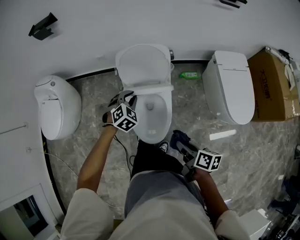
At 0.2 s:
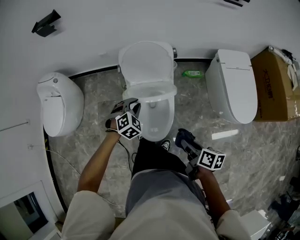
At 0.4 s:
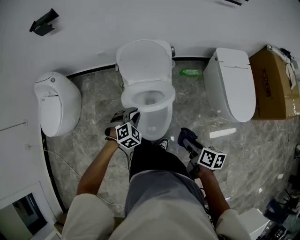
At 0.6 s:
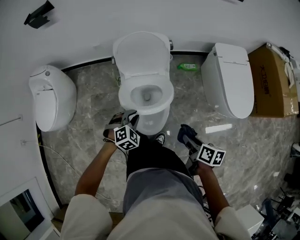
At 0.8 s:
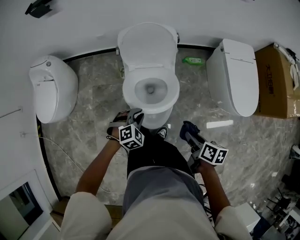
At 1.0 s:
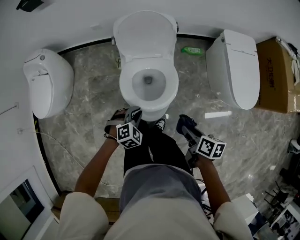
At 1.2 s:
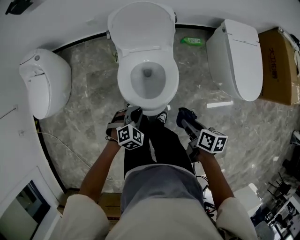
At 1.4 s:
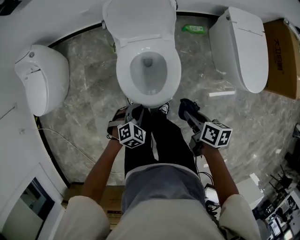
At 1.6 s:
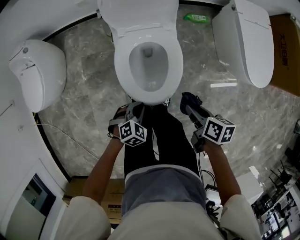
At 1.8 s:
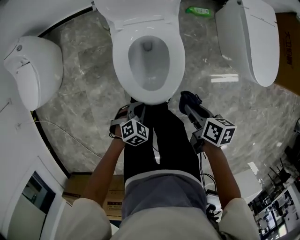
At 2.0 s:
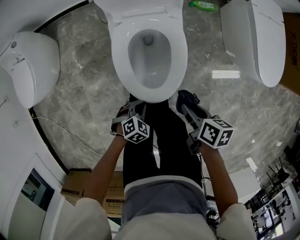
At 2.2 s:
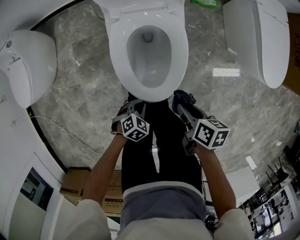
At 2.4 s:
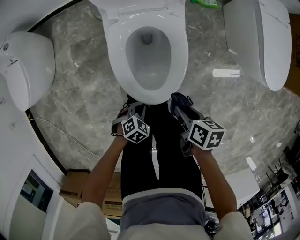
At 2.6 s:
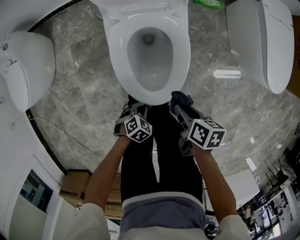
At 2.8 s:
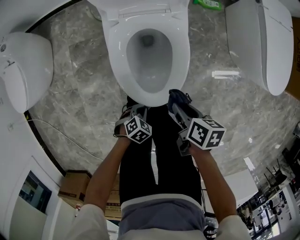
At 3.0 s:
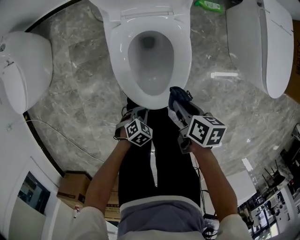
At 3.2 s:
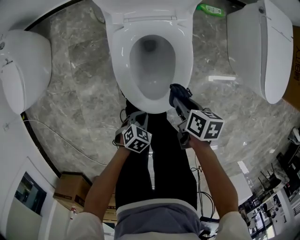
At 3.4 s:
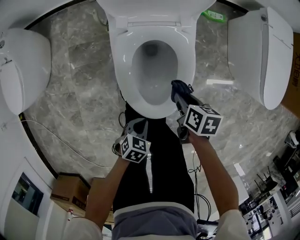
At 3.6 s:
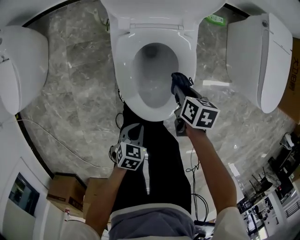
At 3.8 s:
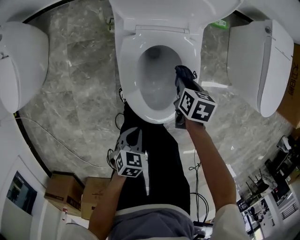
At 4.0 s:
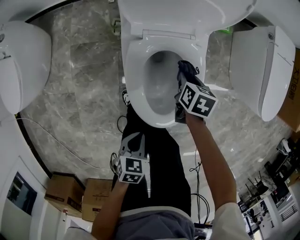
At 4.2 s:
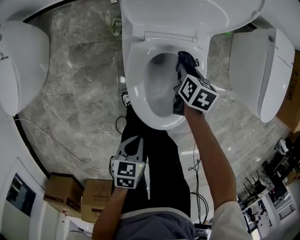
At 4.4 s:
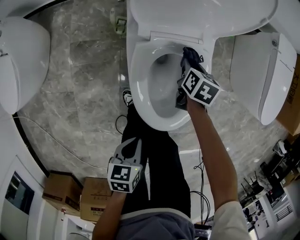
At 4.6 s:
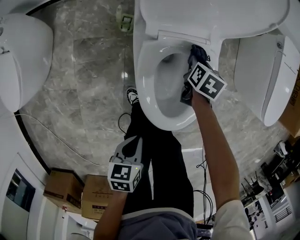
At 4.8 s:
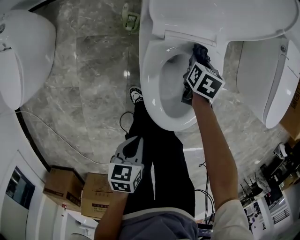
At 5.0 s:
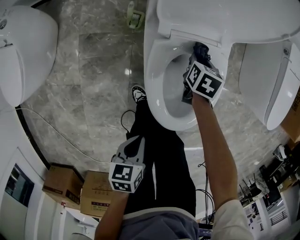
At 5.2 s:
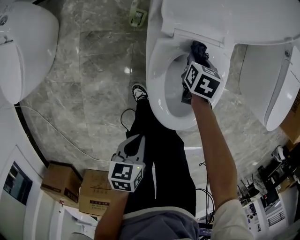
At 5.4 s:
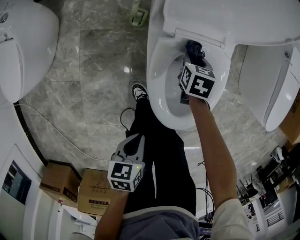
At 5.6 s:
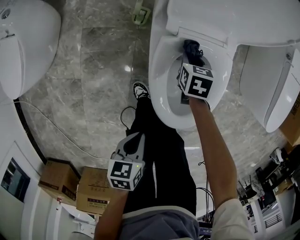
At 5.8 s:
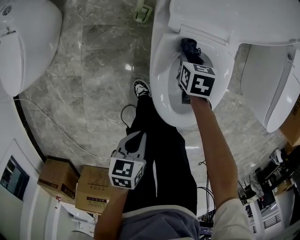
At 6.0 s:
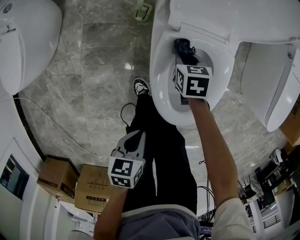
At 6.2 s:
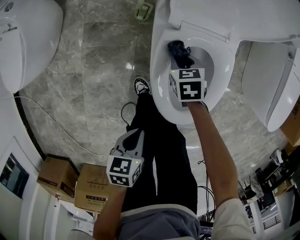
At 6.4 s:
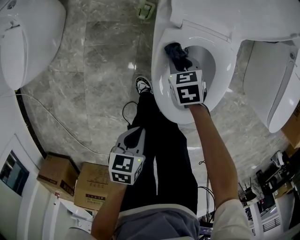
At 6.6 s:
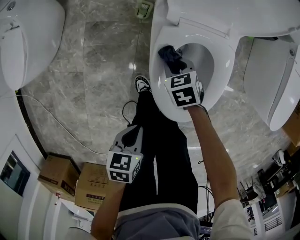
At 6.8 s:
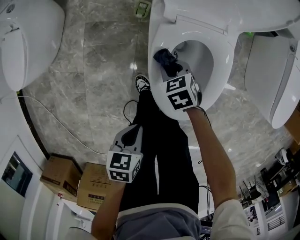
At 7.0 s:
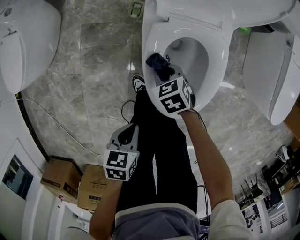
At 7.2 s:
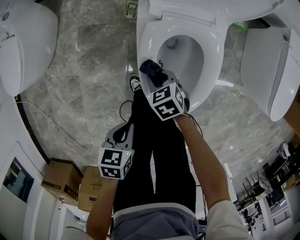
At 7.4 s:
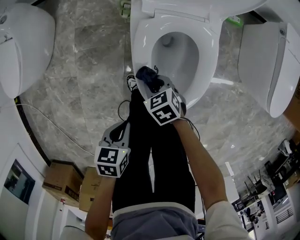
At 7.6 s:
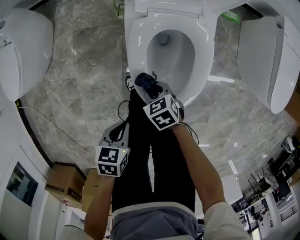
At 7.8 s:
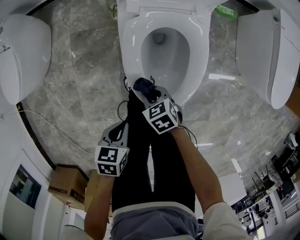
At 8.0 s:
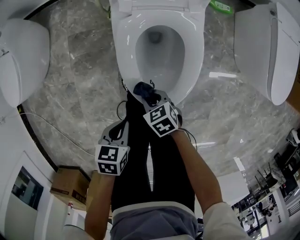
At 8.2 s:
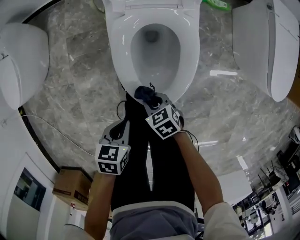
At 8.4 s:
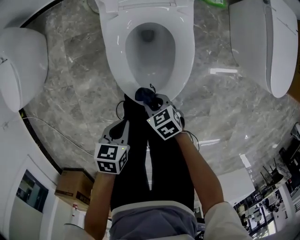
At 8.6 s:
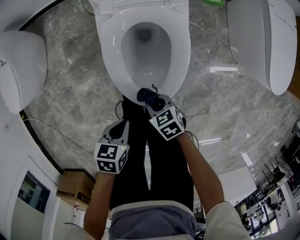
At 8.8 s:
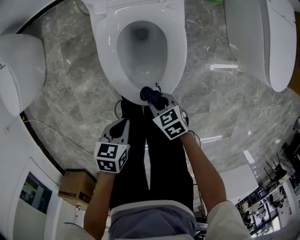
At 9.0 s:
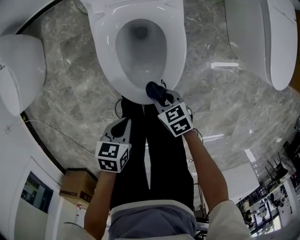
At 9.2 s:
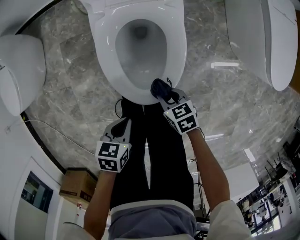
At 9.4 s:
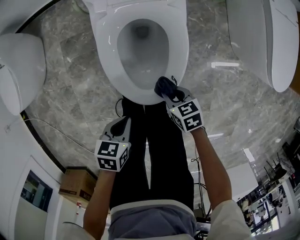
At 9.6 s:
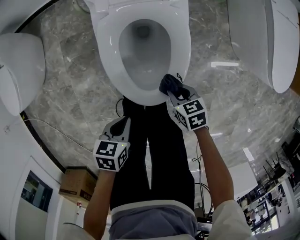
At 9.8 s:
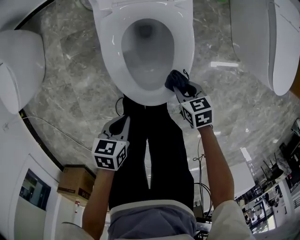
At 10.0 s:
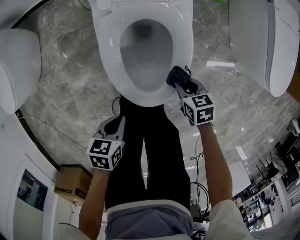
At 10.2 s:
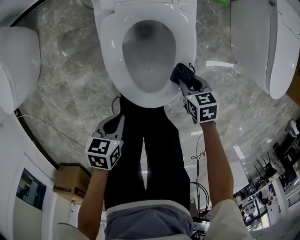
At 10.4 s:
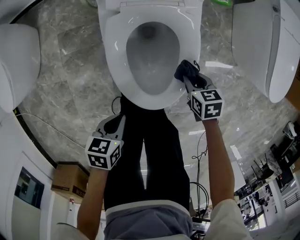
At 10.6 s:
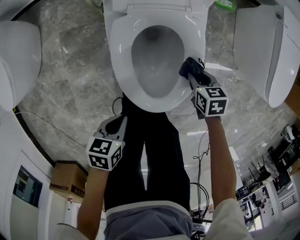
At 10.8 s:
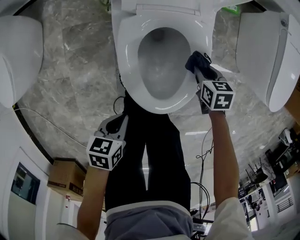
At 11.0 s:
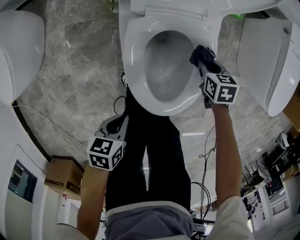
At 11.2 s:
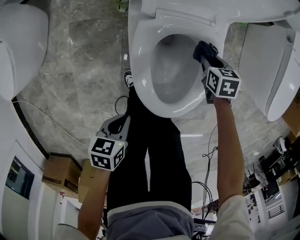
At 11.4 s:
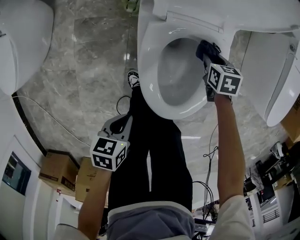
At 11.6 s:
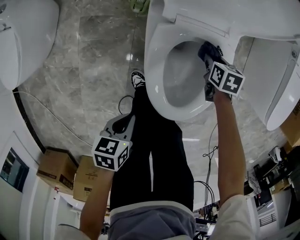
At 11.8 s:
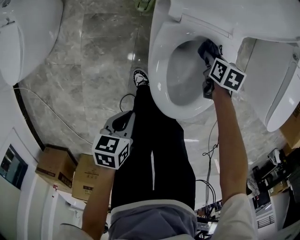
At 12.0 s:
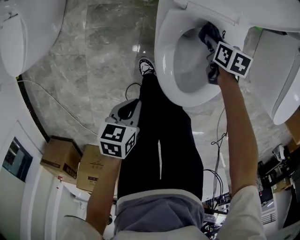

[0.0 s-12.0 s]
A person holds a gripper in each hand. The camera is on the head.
0.0 to 1.6 s: The right gripper moves downward, about 15 cm, while the left gripper moves backward and downward, approximately 30 cm, and changes its angle by roughly 20 degrees.
1.6 to 3.0 s: The grippers both shift downward by roughly 15 cm. The left gripper swivels roughly 20 degrees.
3.0 to 4.4 s: The left gripper is displaced upward by about 15 cm, and twists some 50 degrees counterclockwise, seen from behind; the right gripper ends up approximately 30 cm from where it was, and rotates approximately 30 degrees.
4.4 to 6.0 s: The right gripper shifts about 15 cm to the left and backward, and swivels approximately 30 degrees.
6.0 to 7.6 s: The right gripper travels backward by approximately 20 cm, and swivels approximately 20 degrees.
7.6 to 9.0 s: The left gripper shifts by about 10 cm; the right gripper moves approximately 15 cm.
9.0 to 10.4 s: The right gripper shifts approximately 15 cm forward and to the right. The left gripper shifts some 5 cm to the left.
10.4 to 12.0 s: The left gripper is displaced to the left by approximately 10 cm. Meanwhile the right gripper travels to the left and forward by about 20 cm.

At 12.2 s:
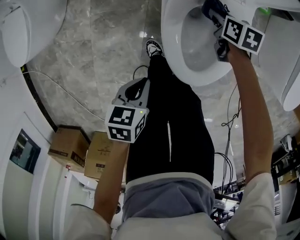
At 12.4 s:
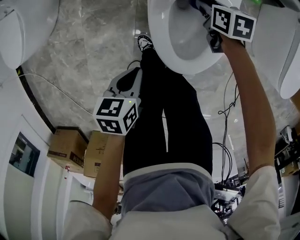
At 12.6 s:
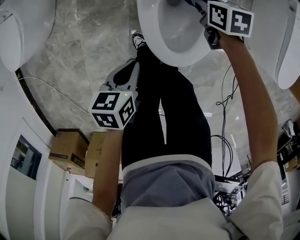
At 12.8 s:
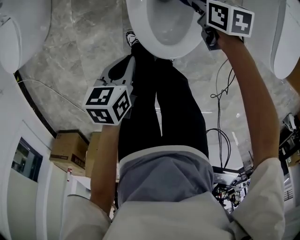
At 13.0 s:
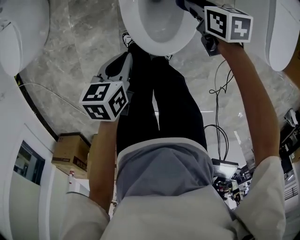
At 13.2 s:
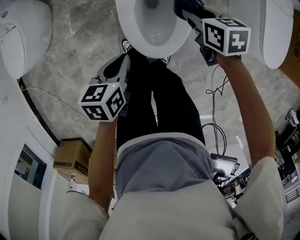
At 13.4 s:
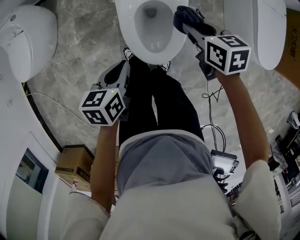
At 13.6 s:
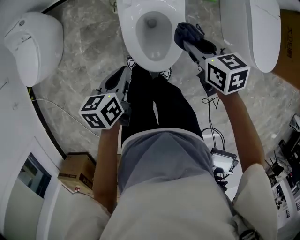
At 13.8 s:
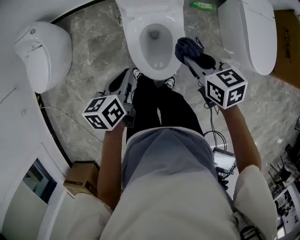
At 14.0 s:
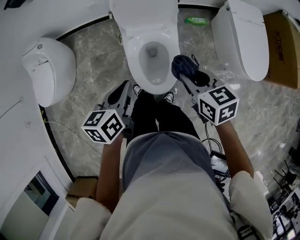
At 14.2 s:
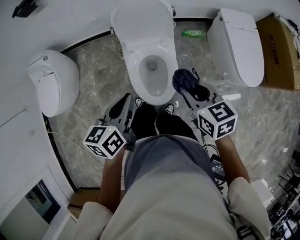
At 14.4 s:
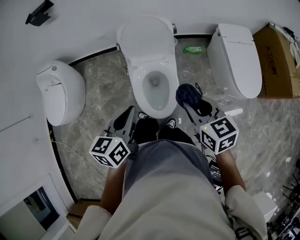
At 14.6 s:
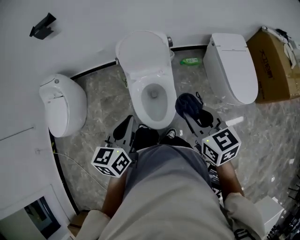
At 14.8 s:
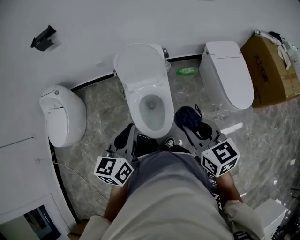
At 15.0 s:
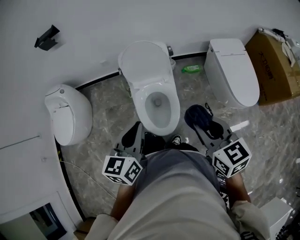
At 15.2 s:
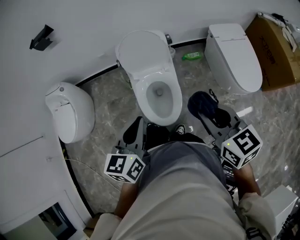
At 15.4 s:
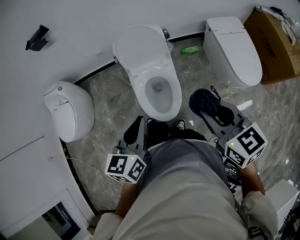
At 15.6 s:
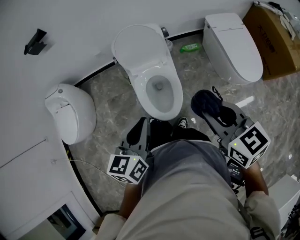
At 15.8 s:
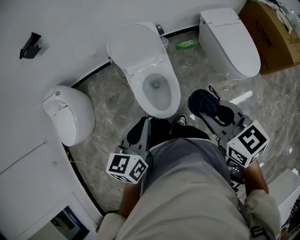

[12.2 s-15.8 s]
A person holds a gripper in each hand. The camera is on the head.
12.2 to 14.0 s: The right gripper is displaced upward and backward by about 50 cm, and turns by some 20 degrees. Meanwhile the left gripper is displaced upward by approximately 30 cm, and rotates approximately 30 degrees.
14.0 to 15.8 s: The left gripper heads upward, to the right and backward, covering roughly 15 cm, and changes its angle by some 20 degrees. The right gripper moves upward, backward and to the right, about 20 cm.

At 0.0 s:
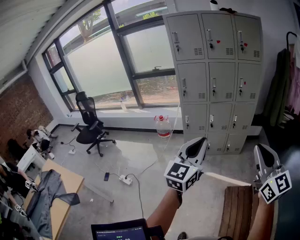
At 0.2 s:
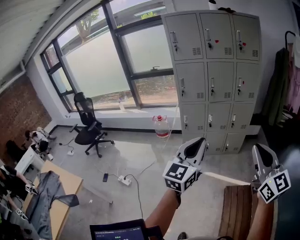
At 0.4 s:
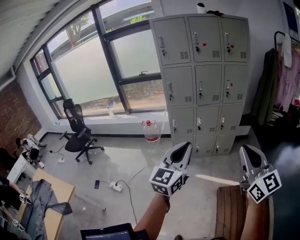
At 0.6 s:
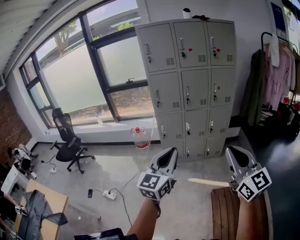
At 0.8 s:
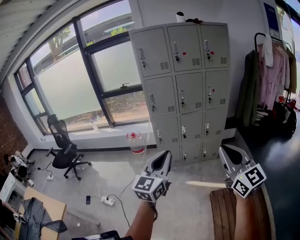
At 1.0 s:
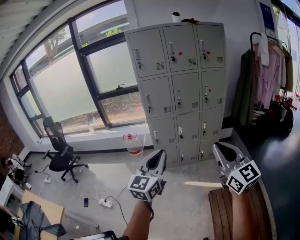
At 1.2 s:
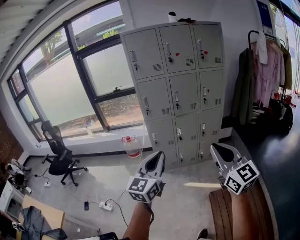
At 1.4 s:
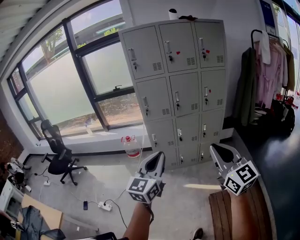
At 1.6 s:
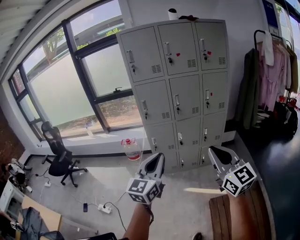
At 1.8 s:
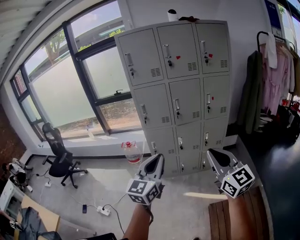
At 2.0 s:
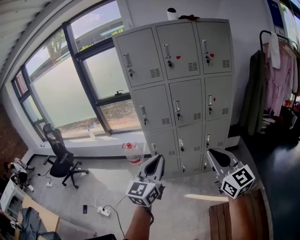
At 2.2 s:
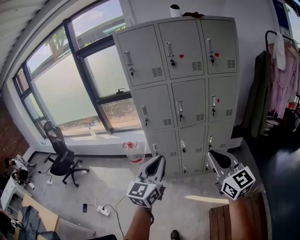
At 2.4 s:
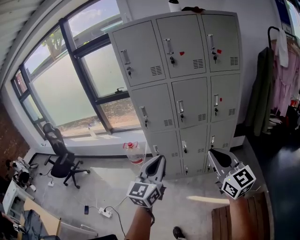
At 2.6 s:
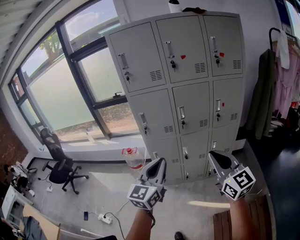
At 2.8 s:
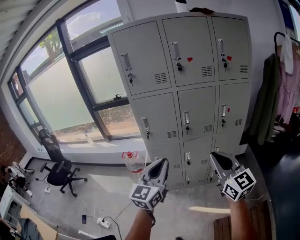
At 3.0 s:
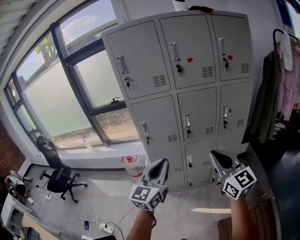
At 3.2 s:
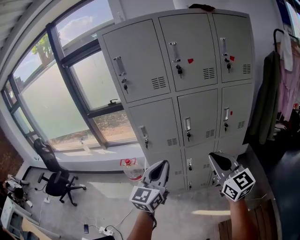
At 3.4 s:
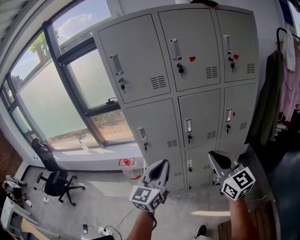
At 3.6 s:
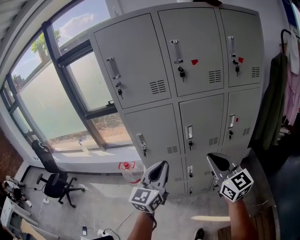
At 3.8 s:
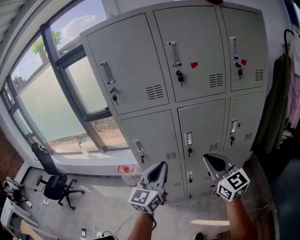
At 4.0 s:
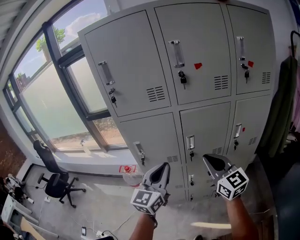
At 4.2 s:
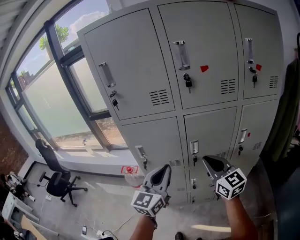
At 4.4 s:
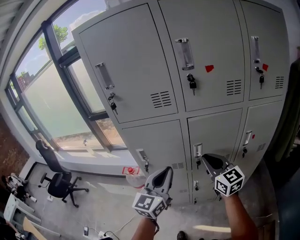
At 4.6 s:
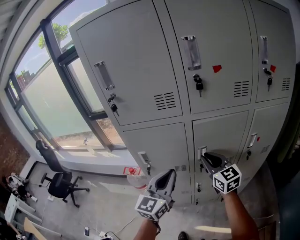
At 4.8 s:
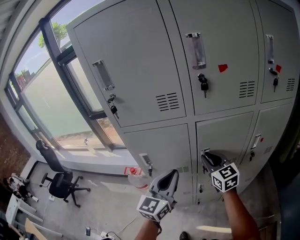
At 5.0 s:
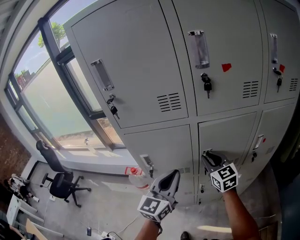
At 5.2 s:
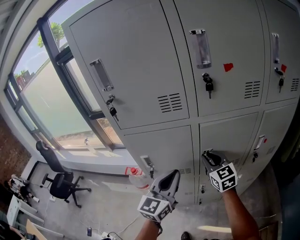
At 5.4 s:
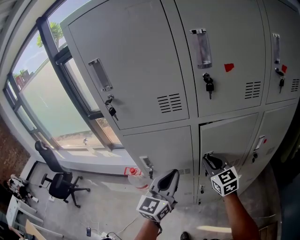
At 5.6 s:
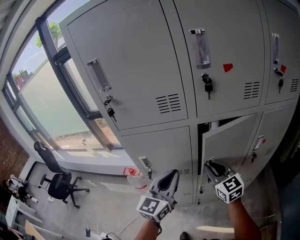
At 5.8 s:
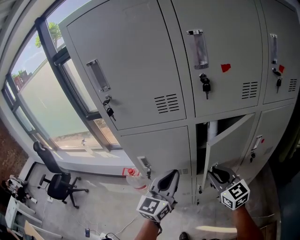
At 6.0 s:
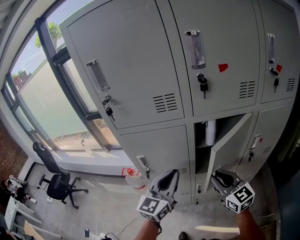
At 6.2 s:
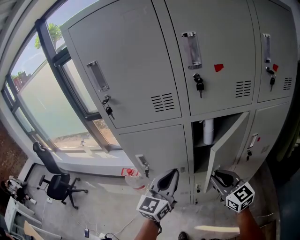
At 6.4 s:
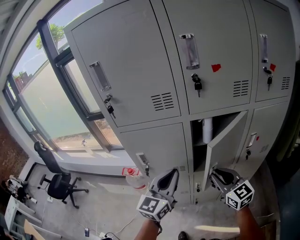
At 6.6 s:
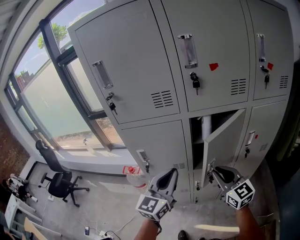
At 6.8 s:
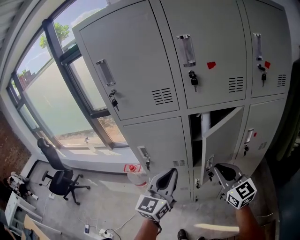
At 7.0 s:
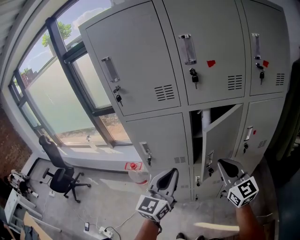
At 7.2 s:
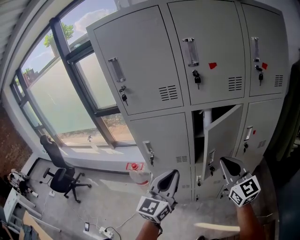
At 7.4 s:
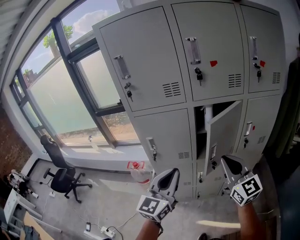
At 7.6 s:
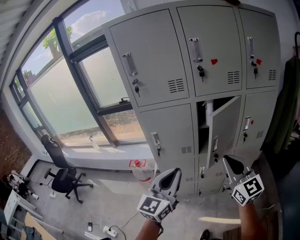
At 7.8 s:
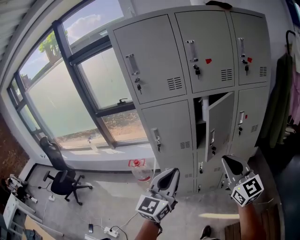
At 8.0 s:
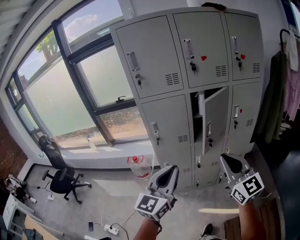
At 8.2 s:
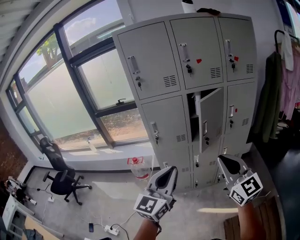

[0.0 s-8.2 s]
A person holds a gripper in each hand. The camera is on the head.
0.0 to 1.6 s: The two grippers go approximately 15 cm forward.
1.6 to 3.2 s: The grippers both shift forward by roughly 35 cm.
3.2 to 5.0 s: The two grippers go roughly 30 cm forward.
5.0 to 6.6 s: The right gripper shifts some 15 cm backward and to the right.
6.6 to 8.2 s: Both grippers travel together backward, some 30 cm.
